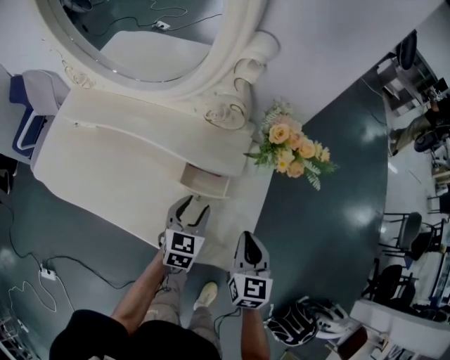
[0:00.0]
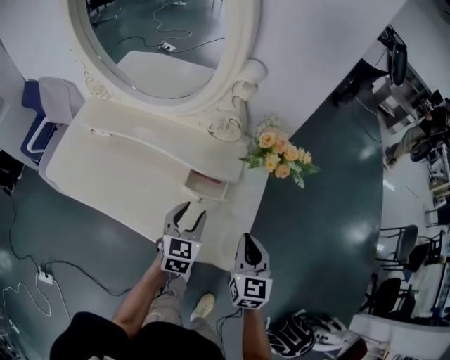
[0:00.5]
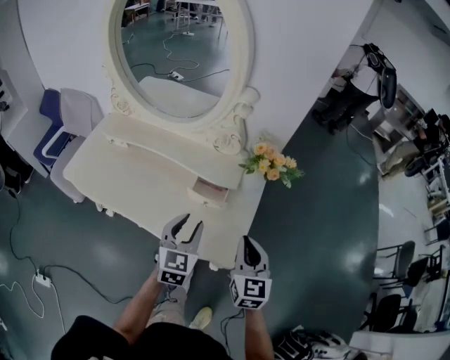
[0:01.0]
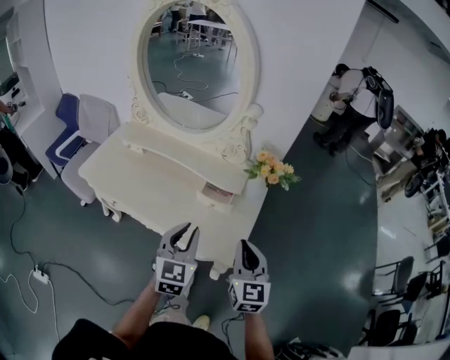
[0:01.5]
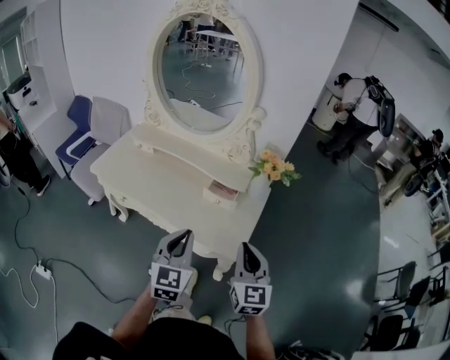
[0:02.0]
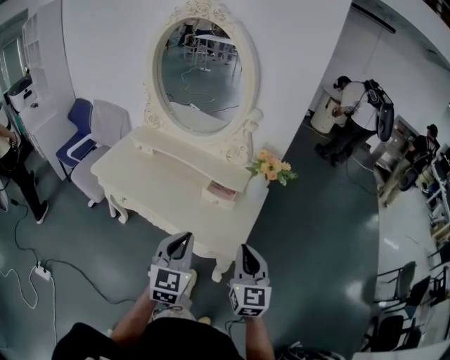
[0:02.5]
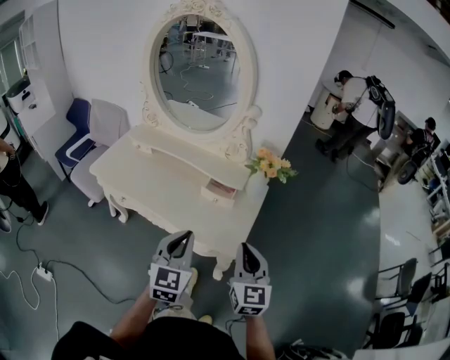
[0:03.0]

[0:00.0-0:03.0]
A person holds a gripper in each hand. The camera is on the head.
0:00.0 to 0:01.5: Both grippers move upward and backward, some 25 cm. The right gripper rotates approximately 20 degrees; the left gripper swivels roughly 20 degrees, and closes up.
0:01.5 to 0:03.0: Both grippers travel together backward, approximately 10 cm.

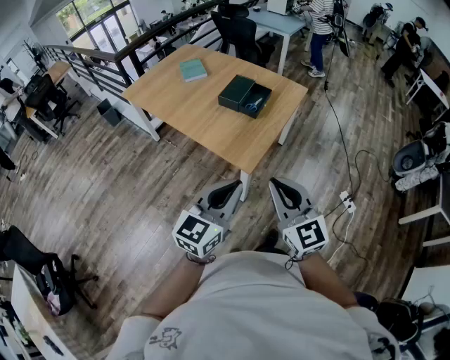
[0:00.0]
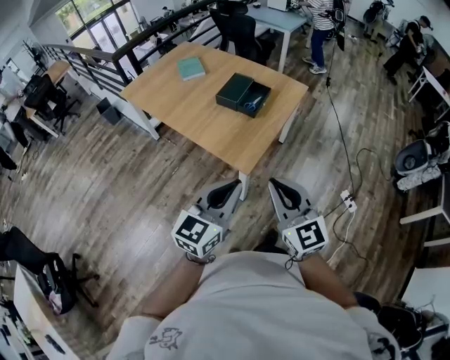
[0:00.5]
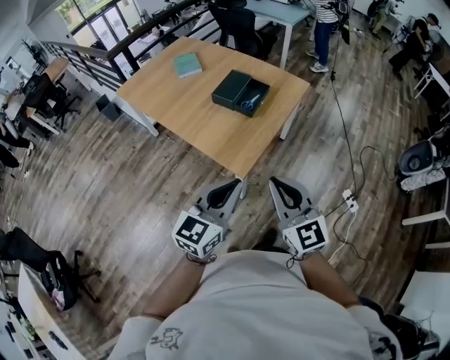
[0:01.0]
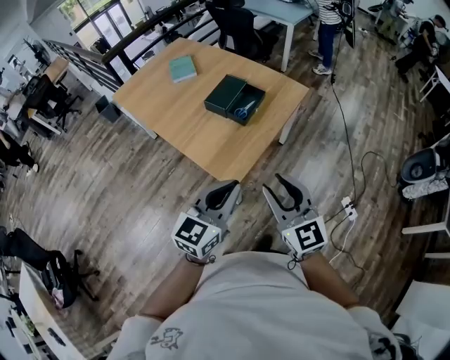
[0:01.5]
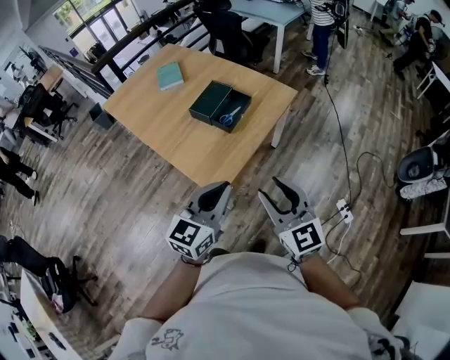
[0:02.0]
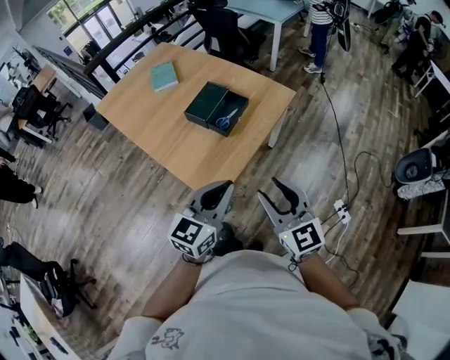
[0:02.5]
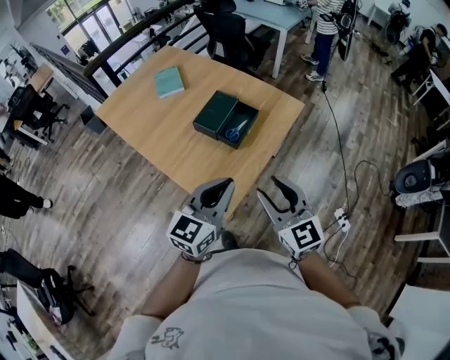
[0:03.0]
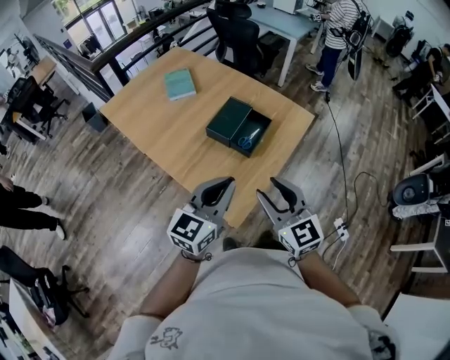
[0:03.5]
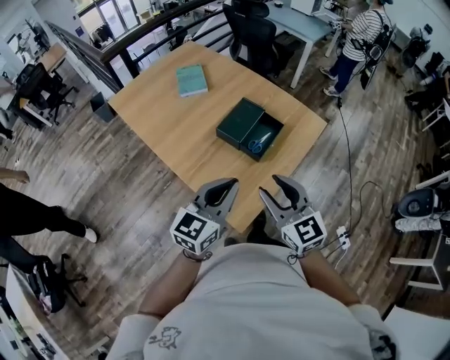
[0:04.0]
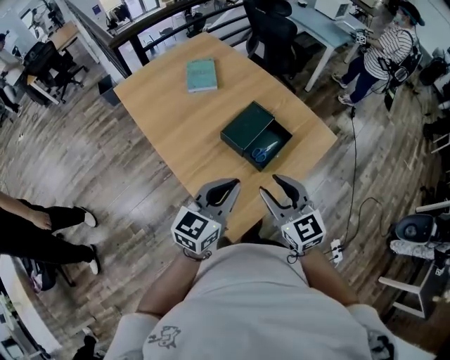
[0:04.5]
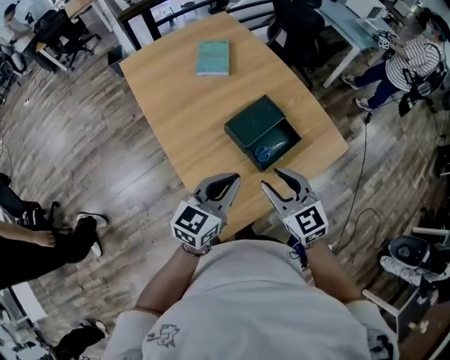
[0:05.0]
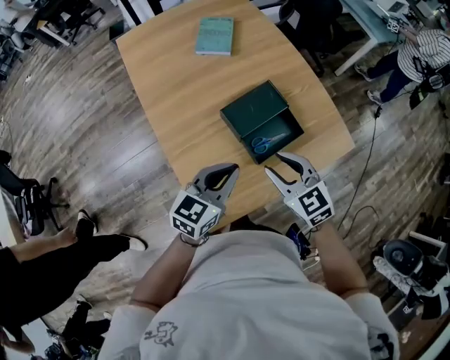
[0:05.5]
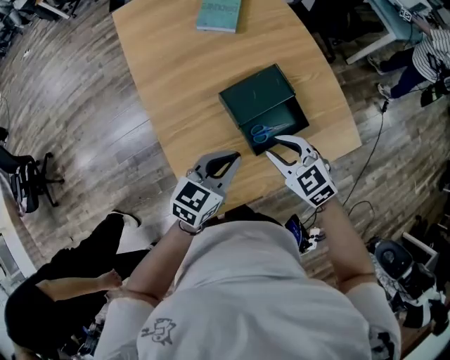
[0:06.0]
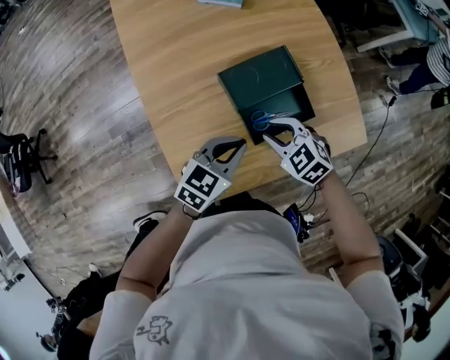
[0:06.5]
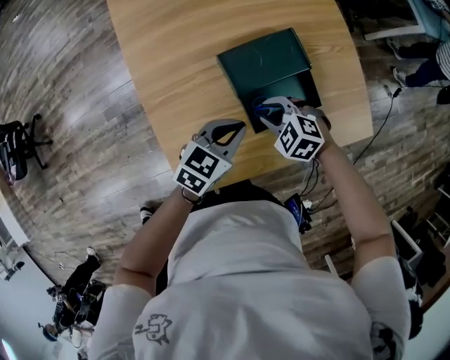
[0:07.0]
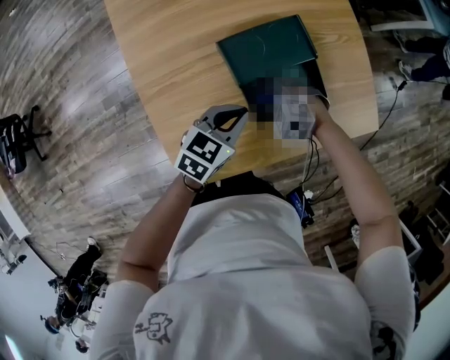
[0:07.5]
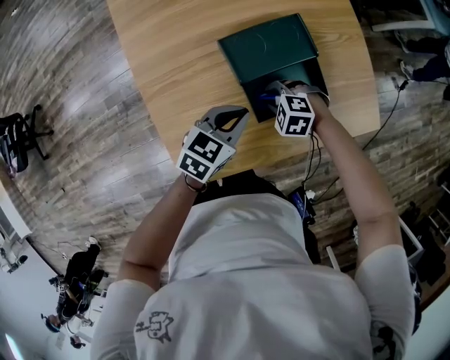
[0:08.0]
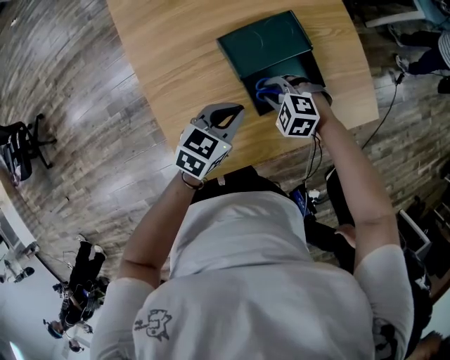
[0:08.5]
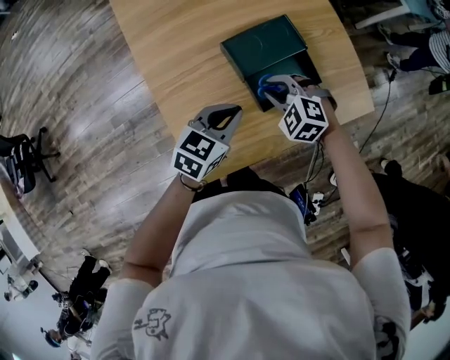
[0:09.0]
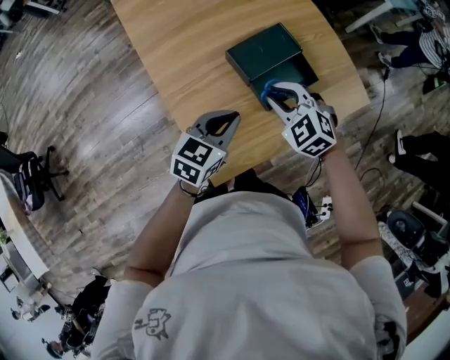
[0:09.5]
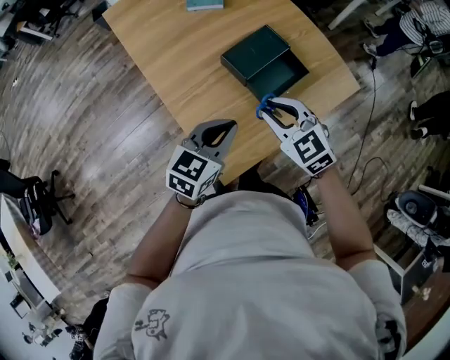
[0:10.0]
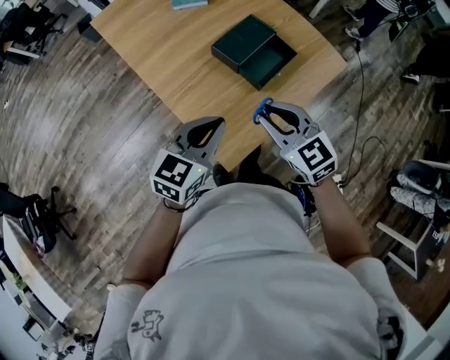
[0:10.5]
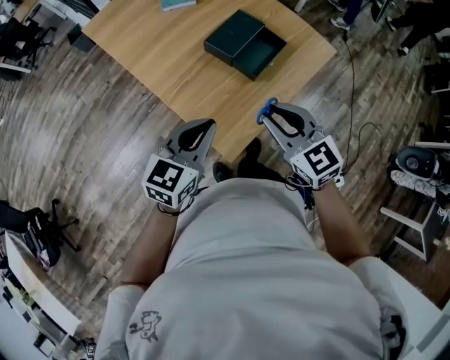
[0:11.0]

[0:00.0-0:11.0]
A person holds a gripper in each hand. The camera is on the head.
0:00.0 to 0:02.0: The two grippers go some 25 cm forward and to the right. The right gripper opens up.
0:02.0 to 0:03.5: Both grippers travel together forward and to the left, some 20 cm.
0:03.5 to 0:05.5: The left gripper changes place by approximately 20 cm, and swivels approximately 30 degrees. Meanwhile the right gripper moves about 25 cm, and swivels about 40 degrees.
0:05.5 to 0:07.5: The left gripper travels downward by roughly 15 cm. Meanwhile the right gripper moves downward, roughly 25 cm, and tips its fingers downward by about 40 degrees.
0:07.5 to 0:09.0: The left gripper is displaced upward by approximately 5 cm. The right gripper goes about 10 cm upward, and changes its angle by some 20 degrees.
0:09.0 to 0:11.0: The left gripper goes about 25 cm backward, upward and to the left, and turns by roughly 20 degrees; the right gripper shifts approximately 30 cm backward and upward, and angles its fingers upward, by about 30 degrees.

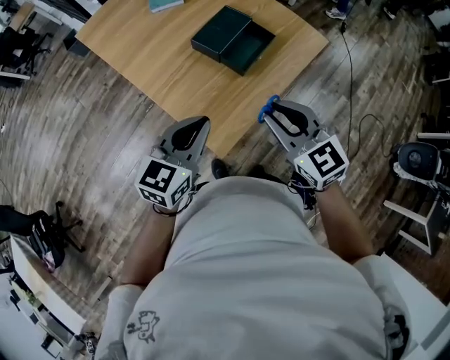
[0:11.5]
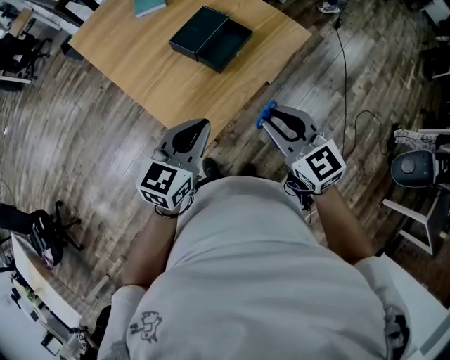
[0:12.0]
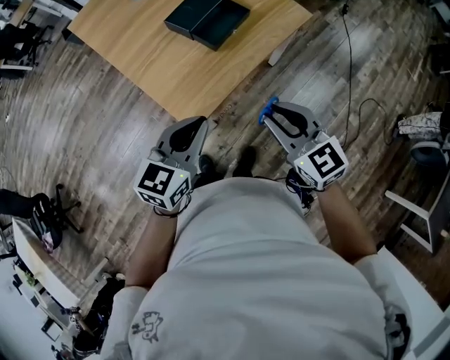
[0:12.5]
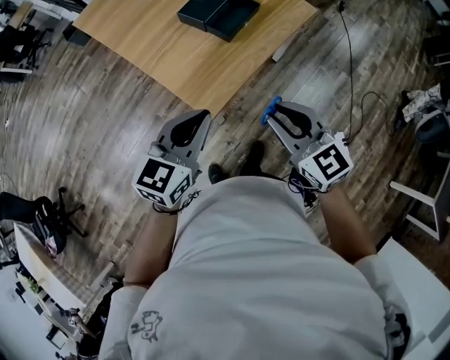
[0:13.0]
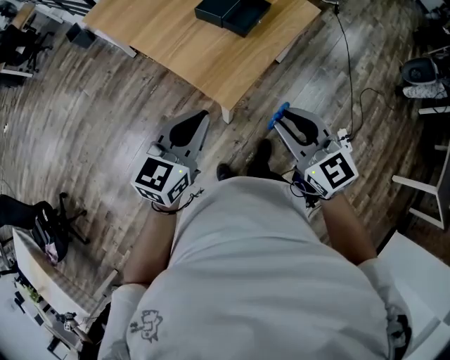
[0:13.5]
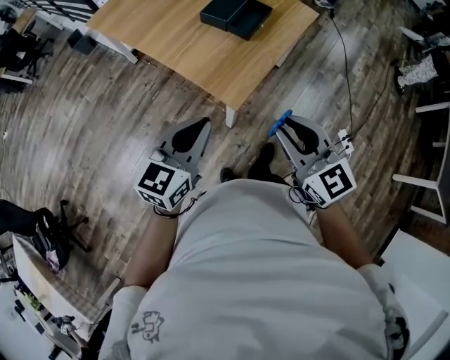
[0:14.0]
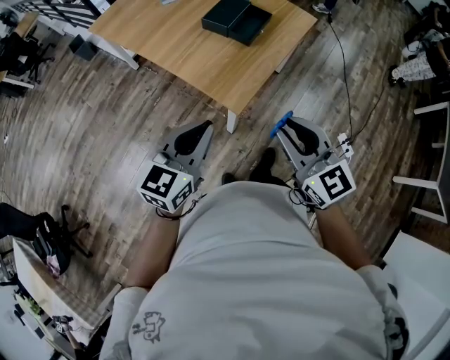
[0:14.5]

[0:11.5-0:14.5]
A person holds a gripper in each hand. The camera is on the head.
0:11.5 to 0:13.0: The grippers both shift backward by some 15 cm.
0:13.0 to 0:14.5: The right gripper goes about 15 cm backward and to the left. The left gripper moves to the left and backward, approximately 15 cm.

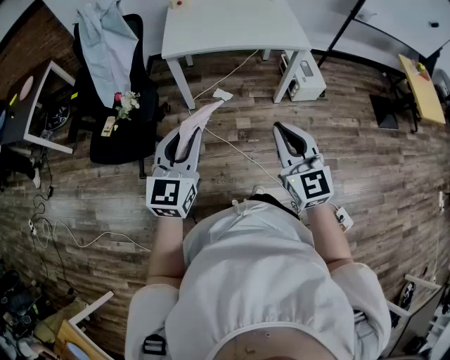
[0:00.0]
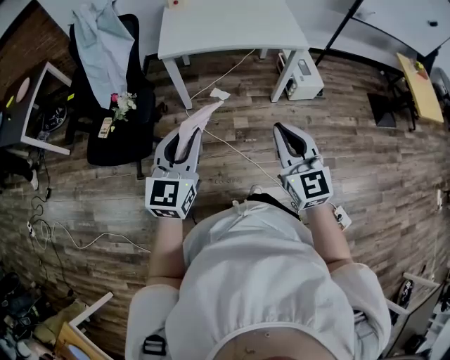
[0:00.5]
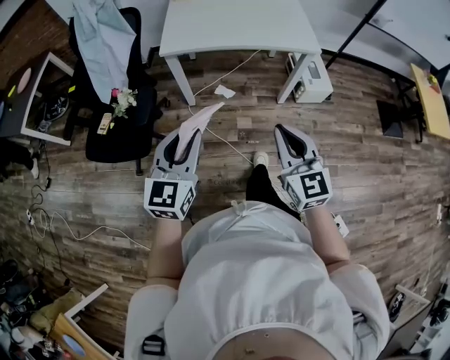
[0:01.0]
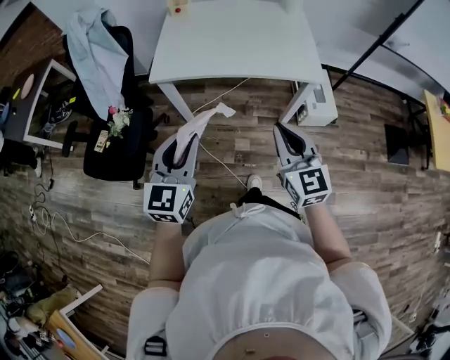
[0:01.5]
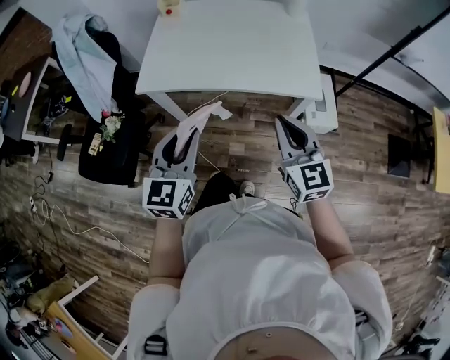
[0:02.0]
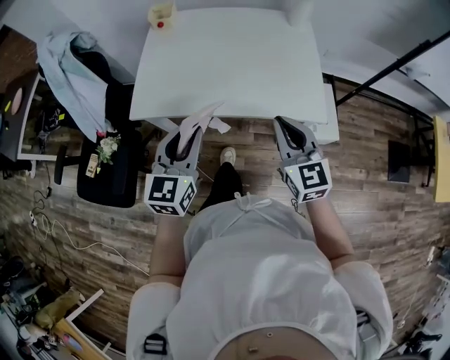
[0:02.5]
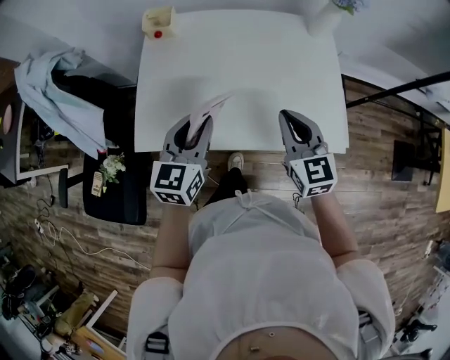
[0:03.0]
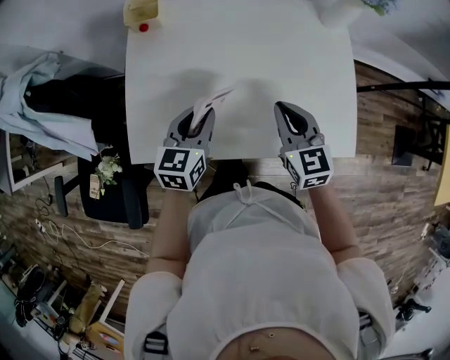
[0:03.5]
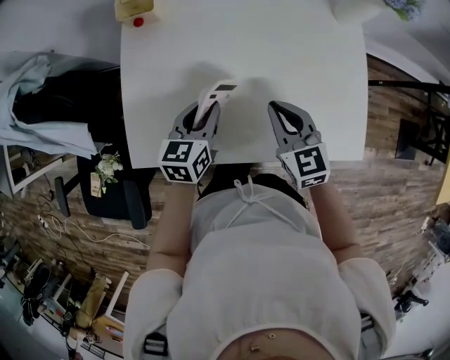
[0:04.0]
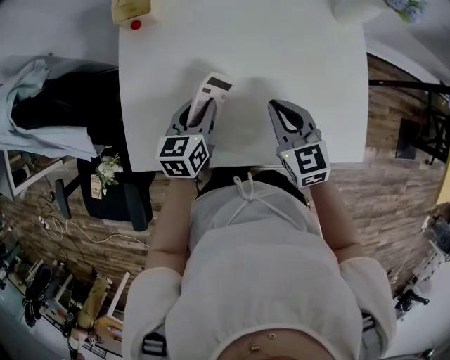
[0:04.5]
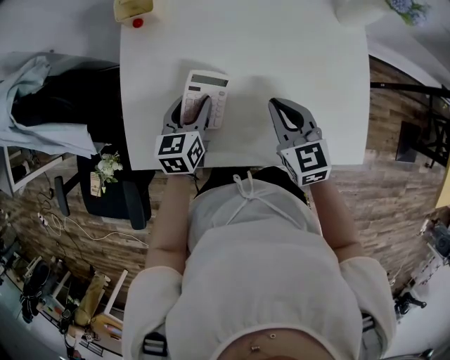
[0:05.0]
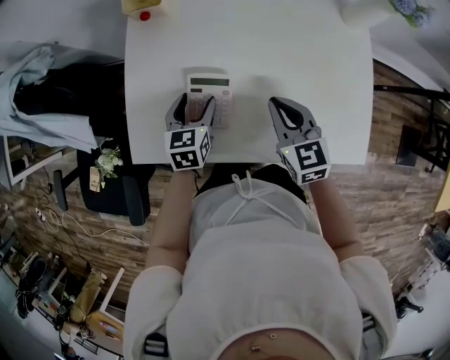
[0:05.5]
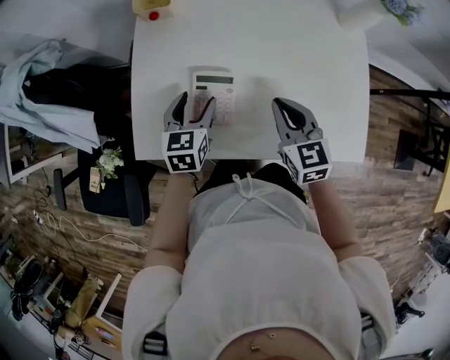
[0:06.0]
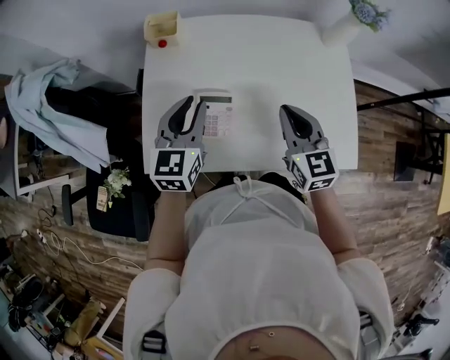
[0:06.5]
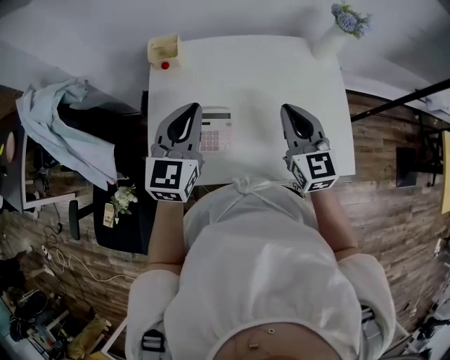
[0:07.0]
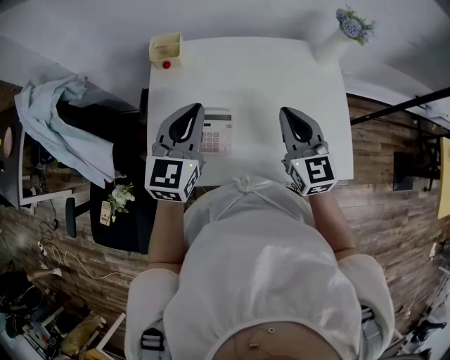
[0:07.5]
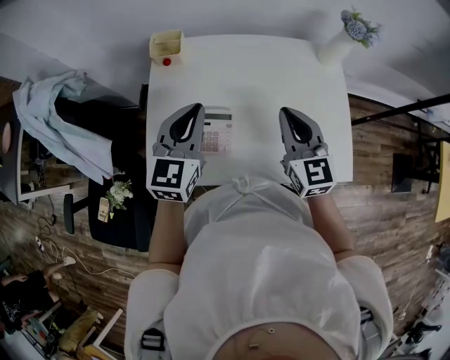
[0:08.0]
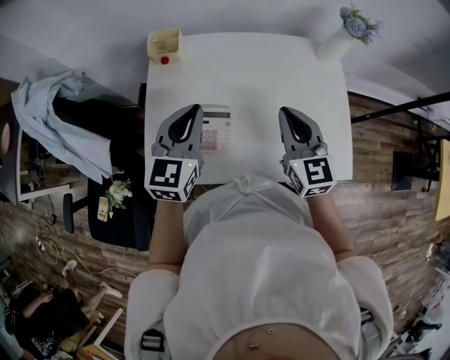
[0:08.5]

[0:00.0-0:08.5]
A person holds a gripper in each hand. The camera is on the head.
0:00.0 to 0:02.0: Both grippers travel together forward and to the right, about 40 cm.
0:02.0 to 0:04.0: The grippers both shift forward and downward by roughly 40 cm. The left gripper swivels roughly 30 degrees.
0:04.0 to 0:06.5: The right gripper travels upward by approximately 10 cm. The left gripper shifts some 15 cm upward, changes its angle by approximately 20 degrees, and opens, then closes once more.
0:06.5 to 0:08.5: The grippers both shift upward by some 5 cm.
